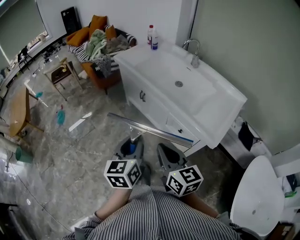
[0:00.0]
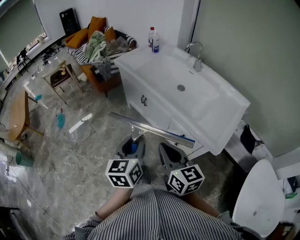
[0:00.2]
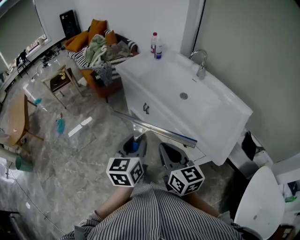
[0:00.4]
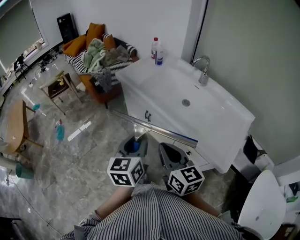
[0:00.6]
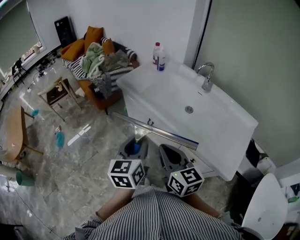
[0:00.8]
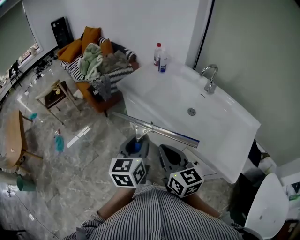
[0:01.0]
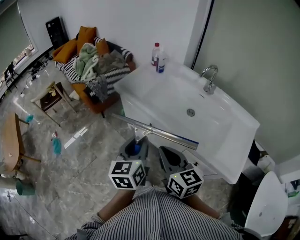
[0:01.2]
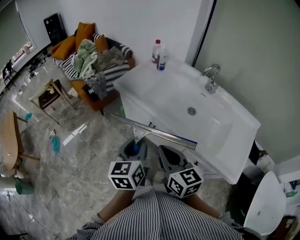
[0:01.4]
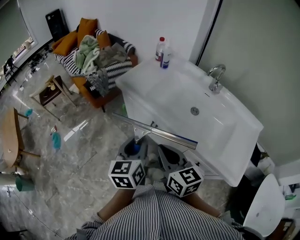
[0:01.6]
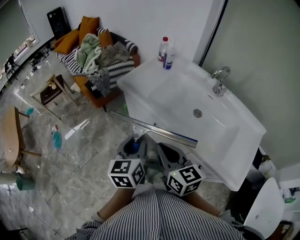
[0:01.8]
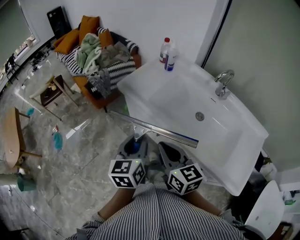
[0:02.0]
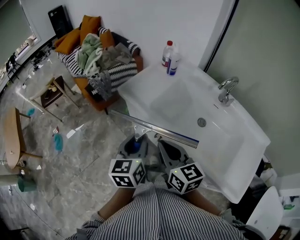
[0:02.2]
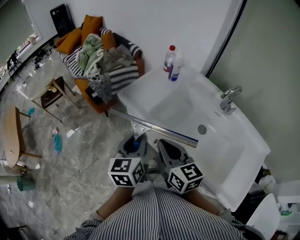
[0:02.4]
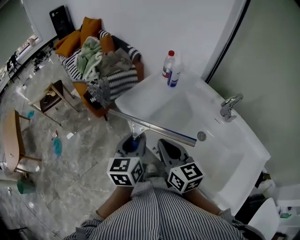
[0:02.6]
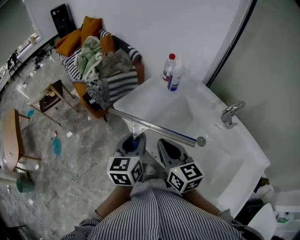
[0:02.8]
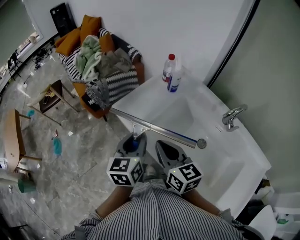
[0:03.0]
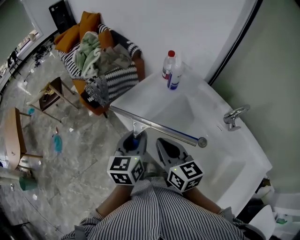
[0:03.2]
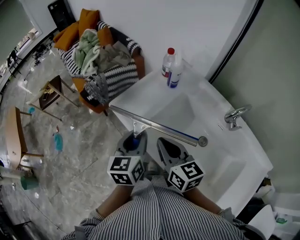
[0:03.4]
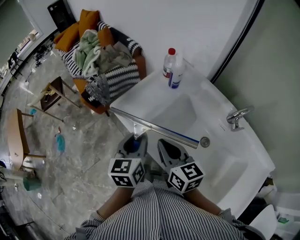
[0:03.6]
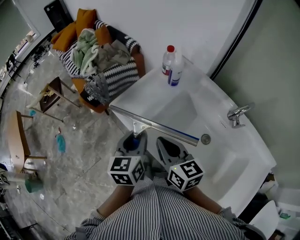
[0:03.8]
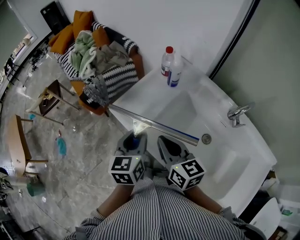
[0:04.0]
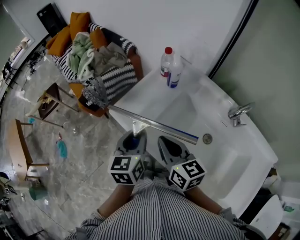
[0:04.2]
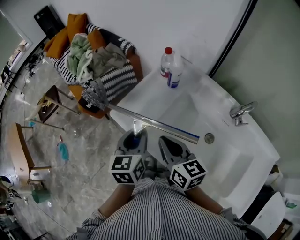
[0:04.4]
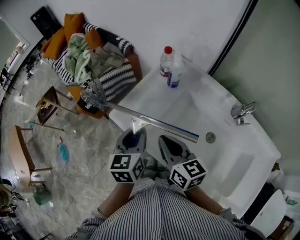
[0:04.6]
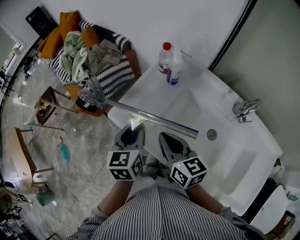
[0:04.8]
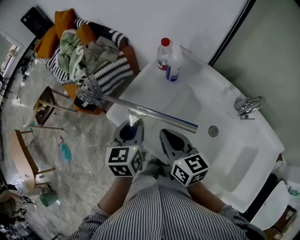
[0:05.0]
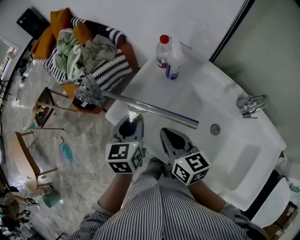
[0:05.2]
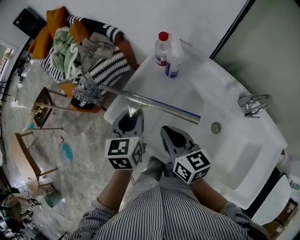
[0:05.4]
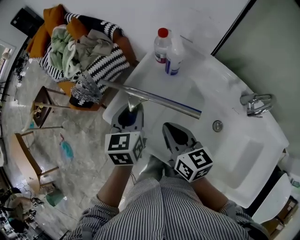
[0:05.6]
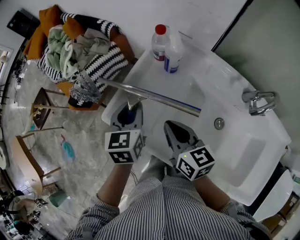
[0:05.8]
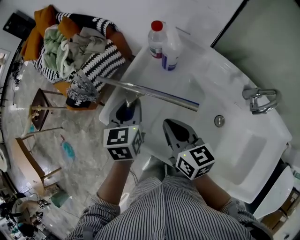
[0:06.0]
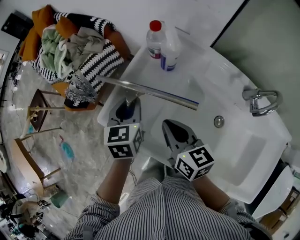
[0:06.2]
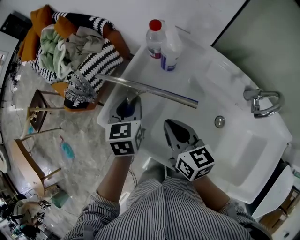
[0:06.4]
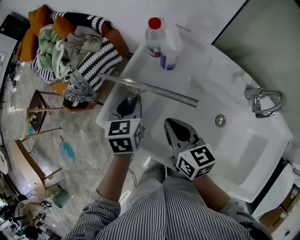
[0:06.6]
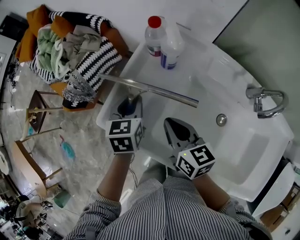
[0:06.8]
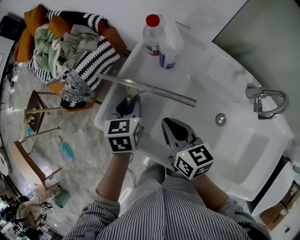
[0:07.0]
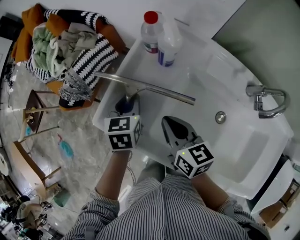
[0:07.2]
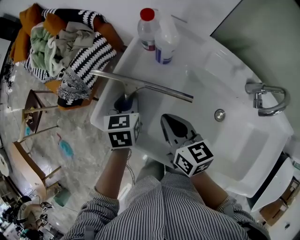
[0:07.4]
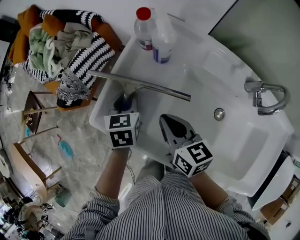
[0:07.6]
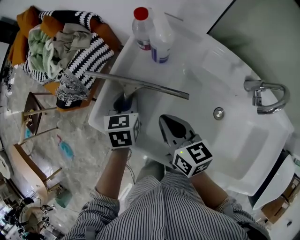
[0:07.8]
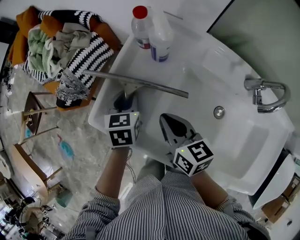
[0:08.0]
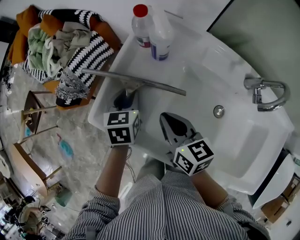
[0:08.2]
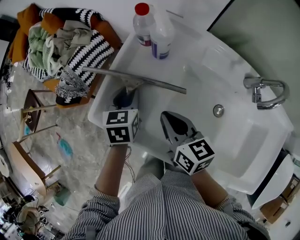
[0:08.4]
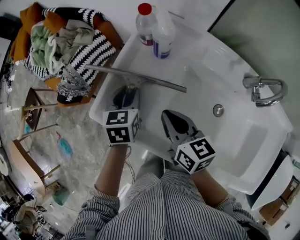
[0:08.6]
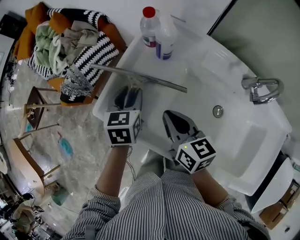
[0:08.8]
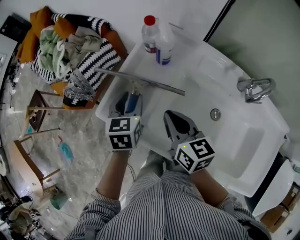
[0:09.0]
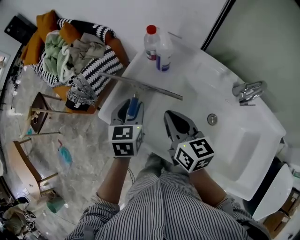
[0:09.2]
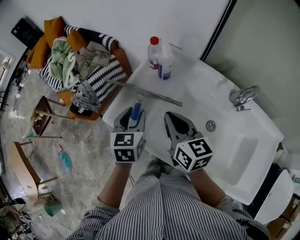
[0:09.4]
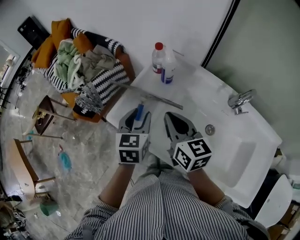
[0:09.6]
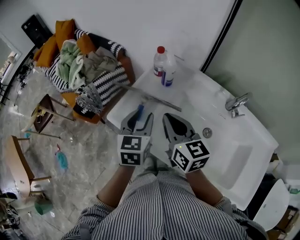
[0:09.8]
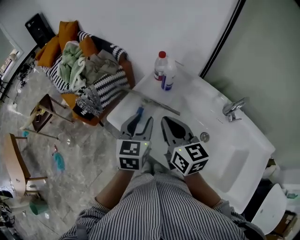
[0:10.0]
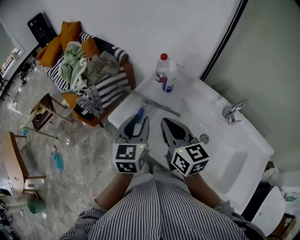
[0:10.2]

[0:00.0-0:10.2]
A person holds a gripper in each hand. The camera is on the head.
0:00.0 to 0:01.4: The two grippers go some 30 cm forward.
0:01.4 to 0:03.0: Both grippers travel together forward, approximately 25 cm.
0:03.0 to 0:04.4: The grippers both shift forward by roughly 5 cm.
0:04.4 to 0:05.8: Both grippers travel together forward and downward, approximately 10 cm.
0:05.8 to 0:07.2: The right gripper ends up roughly 5 cm from where it was. Meanwhile the left gripper shifts approximately 10 cm downward.
0:07.2 to 0:08.8: The grippers move only a little.
0:08.8 to 0:10.2: The right gripper is displaced upward by roughly 15 cm, and changes its angle by some 20 degrees. The left gripper goes approximately 20 cm upward and backward, and turns by about 20 degrees.

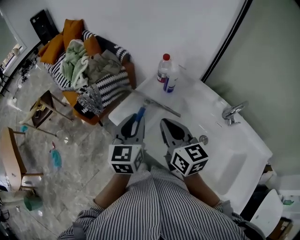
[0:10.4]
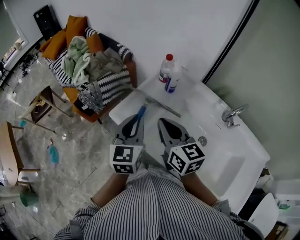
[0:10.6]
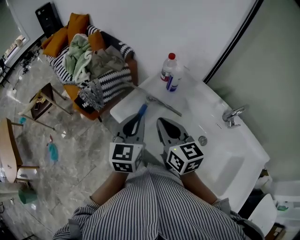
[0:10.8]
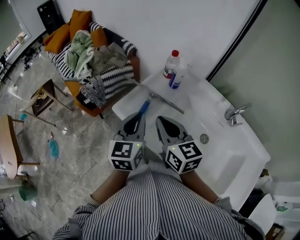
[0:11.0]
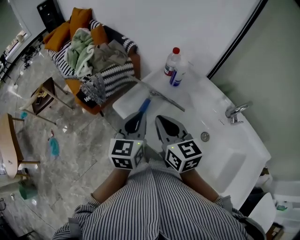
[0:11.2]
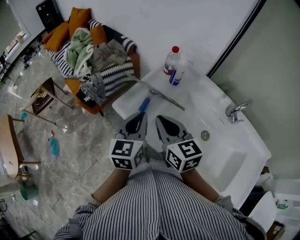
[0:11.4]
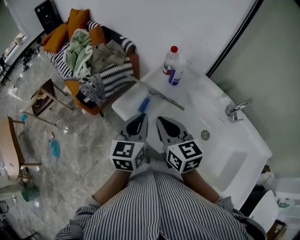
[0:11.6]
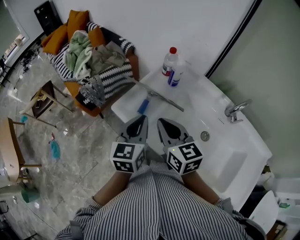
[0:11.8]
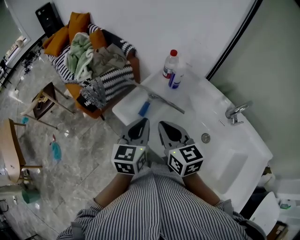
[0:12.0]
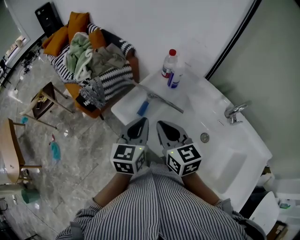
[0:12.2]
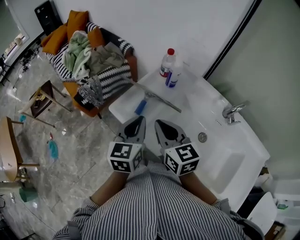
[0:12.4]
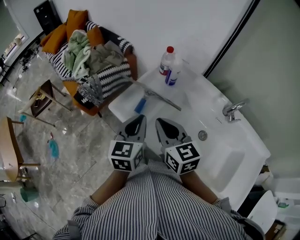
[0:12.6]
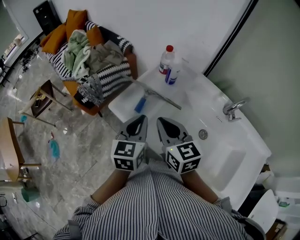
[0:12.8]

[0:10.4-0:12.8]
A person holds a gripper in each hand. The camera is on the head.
0:10.4 to 0:12.8: The grippers move only a little.

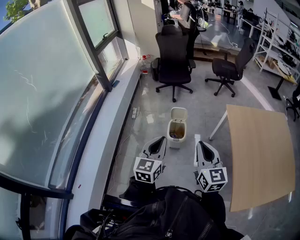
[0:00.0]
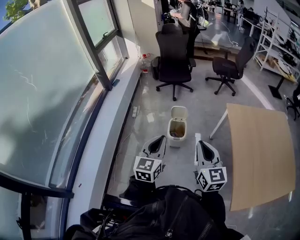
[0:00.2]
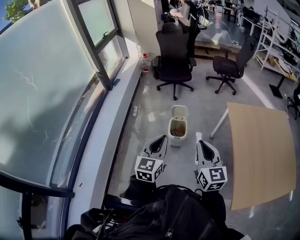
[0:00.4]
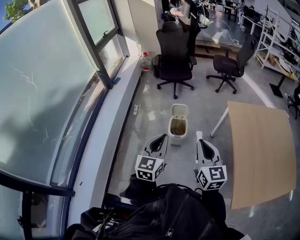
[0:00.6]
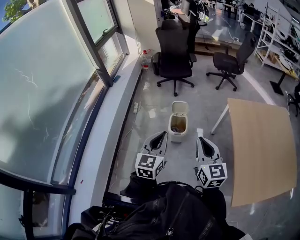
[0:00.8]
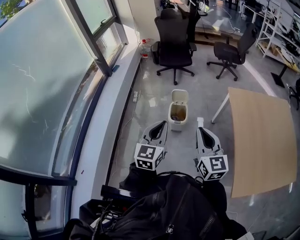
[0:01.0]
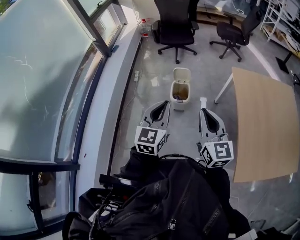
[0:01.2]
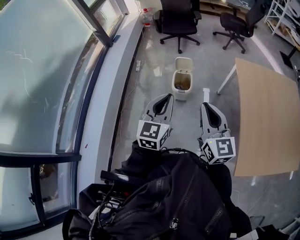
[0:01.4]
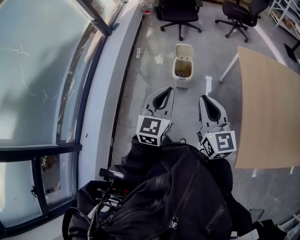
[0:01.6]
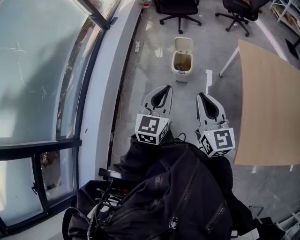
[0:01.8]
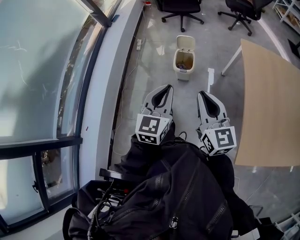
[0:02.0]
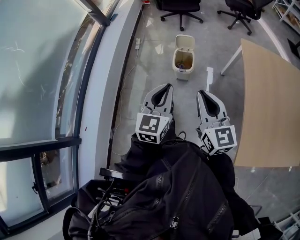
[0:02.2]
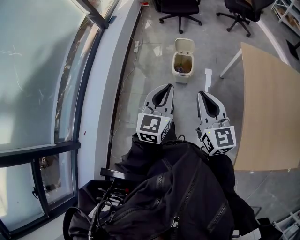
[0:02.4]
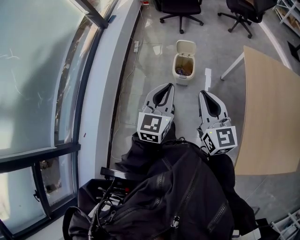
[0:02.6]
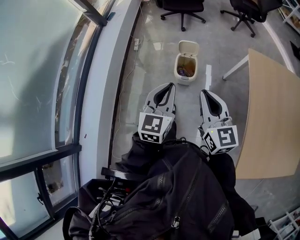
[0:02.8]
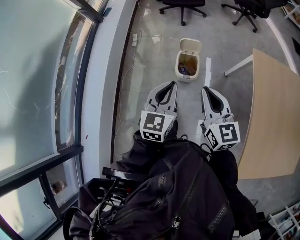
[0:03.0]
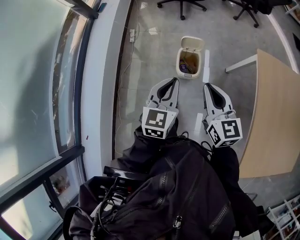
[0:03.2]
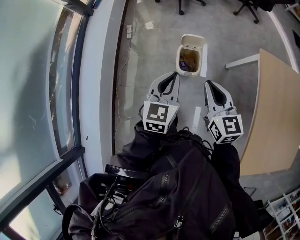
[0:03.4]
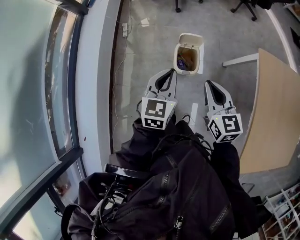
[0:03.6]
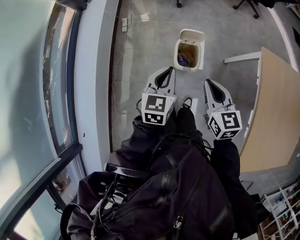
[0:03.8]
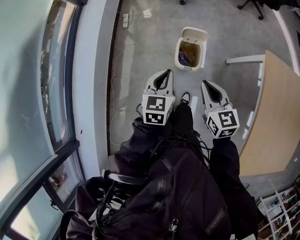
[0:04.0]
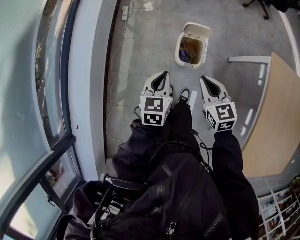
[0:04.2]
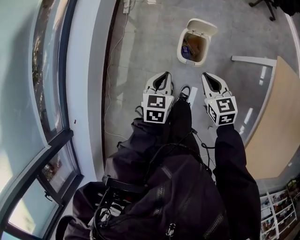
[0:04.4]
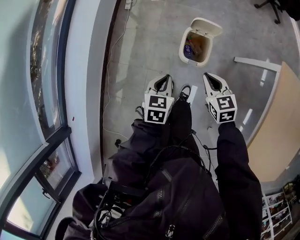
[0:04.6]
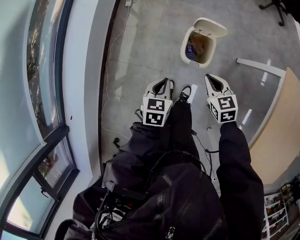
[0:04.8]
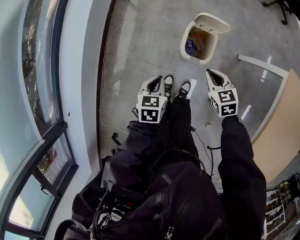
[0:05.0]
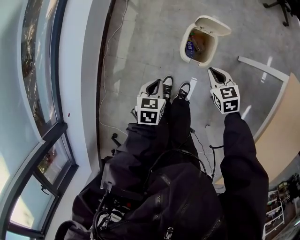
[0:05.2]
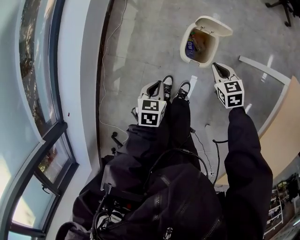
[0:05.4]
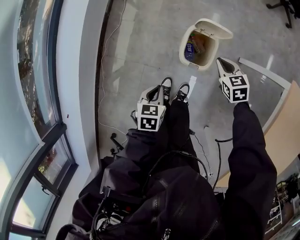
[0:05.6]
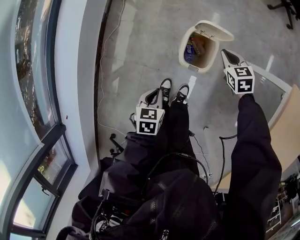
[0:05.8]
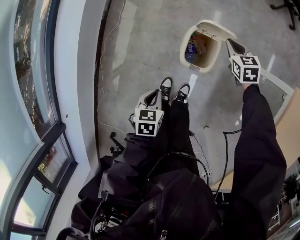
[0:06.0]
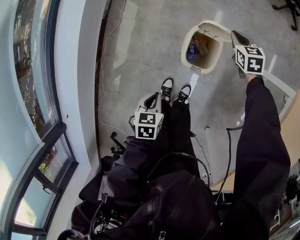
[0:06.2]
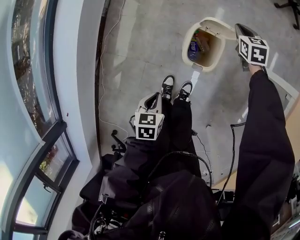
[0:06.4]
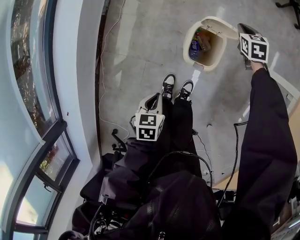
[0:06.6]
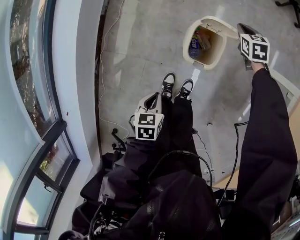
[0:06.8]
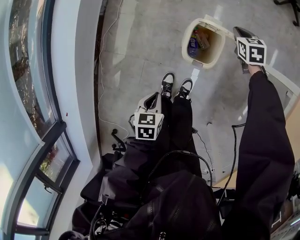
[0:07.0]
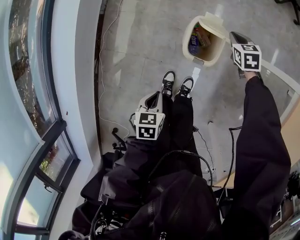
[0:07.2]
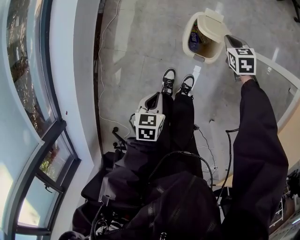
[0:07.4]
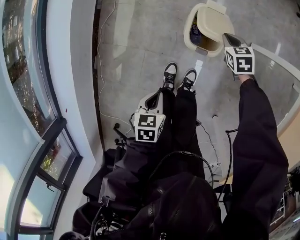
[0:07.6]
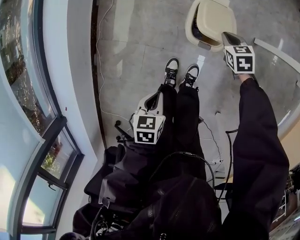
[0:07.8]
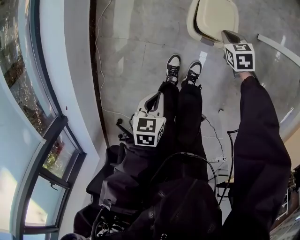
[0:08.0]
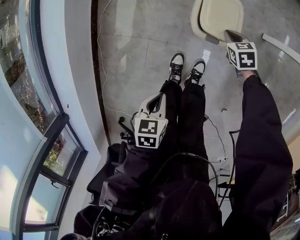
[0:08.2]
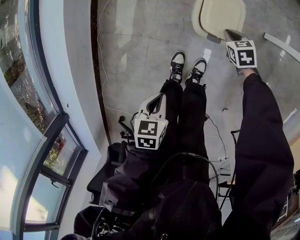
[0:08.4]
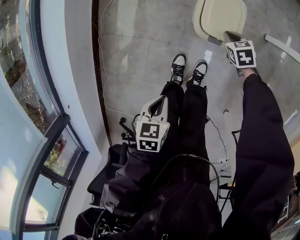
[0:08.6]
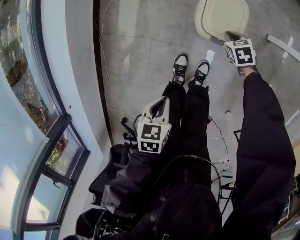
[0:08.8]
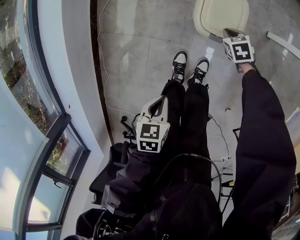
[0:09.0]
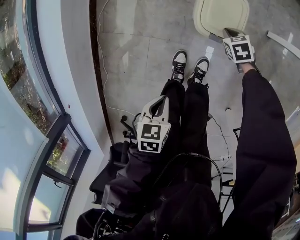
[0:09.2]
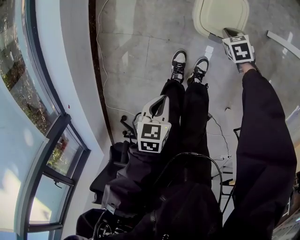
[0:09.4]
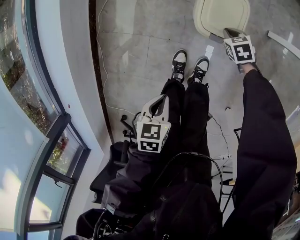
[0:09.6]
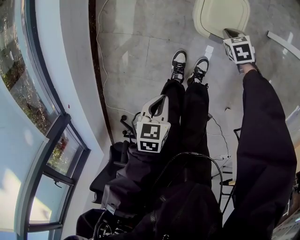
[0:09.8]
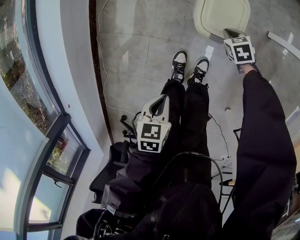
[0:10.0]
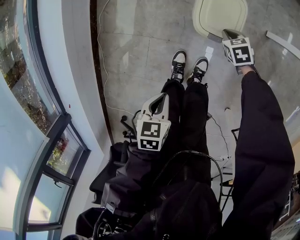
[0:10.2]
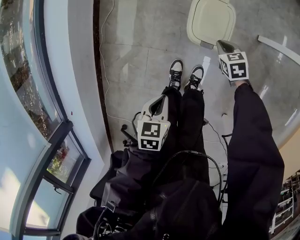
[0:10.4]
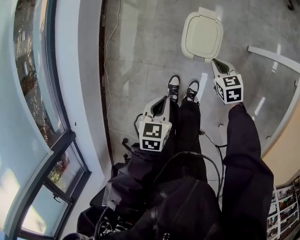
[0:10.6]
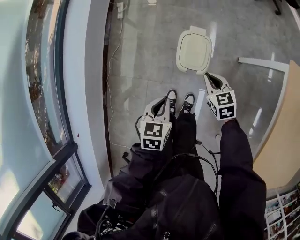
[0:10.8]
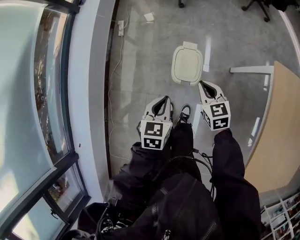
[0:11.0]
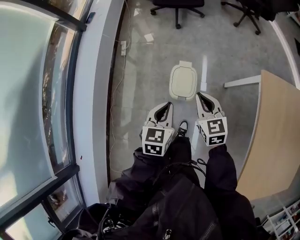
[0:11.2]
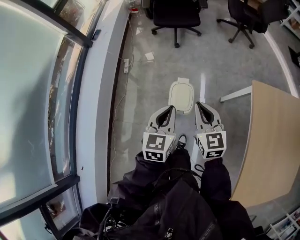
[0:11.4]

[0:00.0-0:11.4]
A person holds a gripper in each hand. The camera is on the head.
0:00.0 to 0:01.4: The left gripper ends up roughly 5 cm from where it was.
0:01.4 to 0:02.8: The grippers both shift forward and downward by roughly 15 cm.
0:02.8 to 0:04.2: The grippers both shift downward and forward by roughly 30 cm. The left gripper rotates roughly 30 degrees, while the right gripper swivels approximately 30 degrees.
0:04.2 to 0:05.6: The left gripper heads downward, covering roughly 20 cm, and turns by some 30 degrees. Meanwhile the right gripper is displaced downward and forward by roughly 25 cm, and swivels about 20 degrees.
0:05.6 to 0:07.2: The right gripper is displaced forward and downward by roughly 10 cm, while the left gripper moves approximately 5 cm.
0:07.2 to 0:08.6: The right gripper moves downward and backward, approximately 20 cm, while the left gripper is displaced backward and downward by some 10 cm.
0:08.6 to 0:10.0: The grippers make only small movements.
0:10.0 to 0:11.4: The right gripper heads upward, covering approximately 60 cm, and points its fingers roughly 50 degrees further upward, while the left gripper goes roughly 50 cm upward and forward, and angles its fingers upward, by about 40 degrees.
